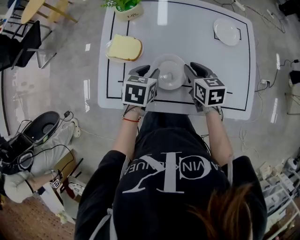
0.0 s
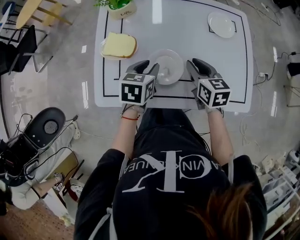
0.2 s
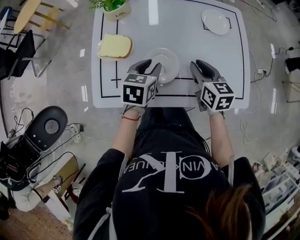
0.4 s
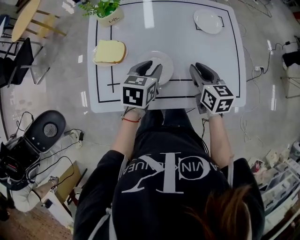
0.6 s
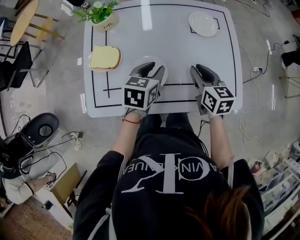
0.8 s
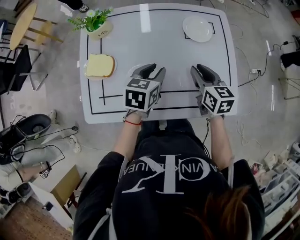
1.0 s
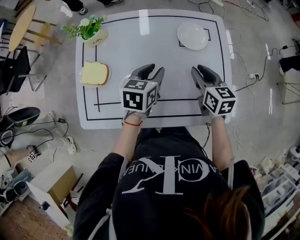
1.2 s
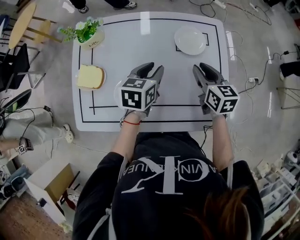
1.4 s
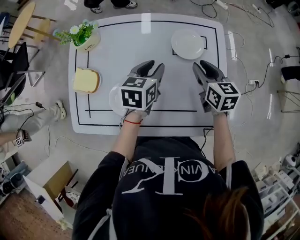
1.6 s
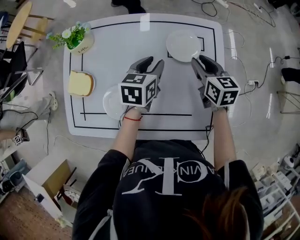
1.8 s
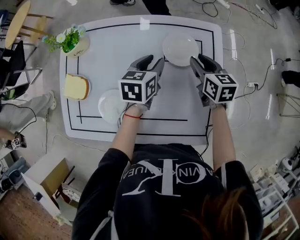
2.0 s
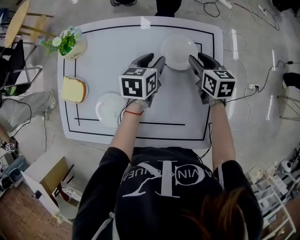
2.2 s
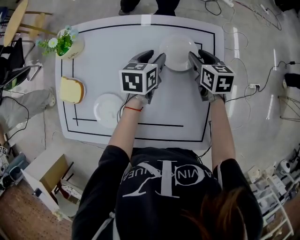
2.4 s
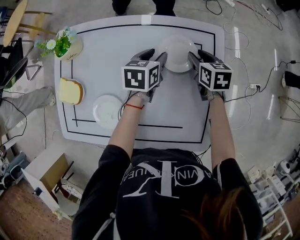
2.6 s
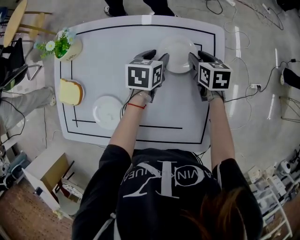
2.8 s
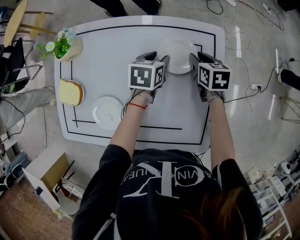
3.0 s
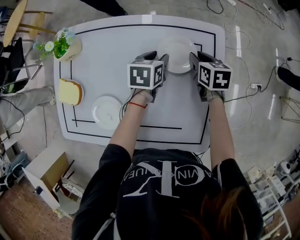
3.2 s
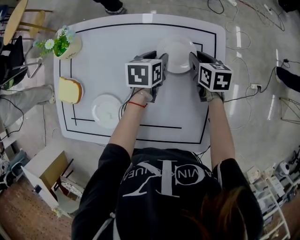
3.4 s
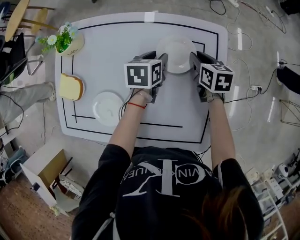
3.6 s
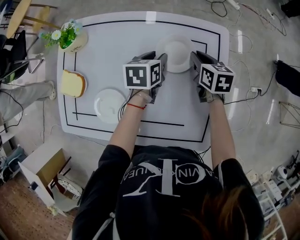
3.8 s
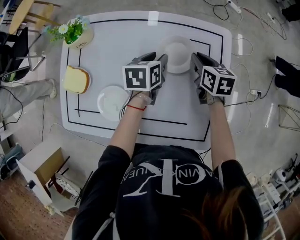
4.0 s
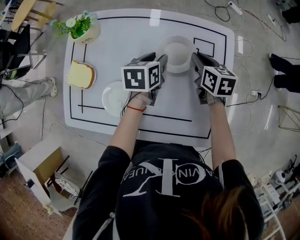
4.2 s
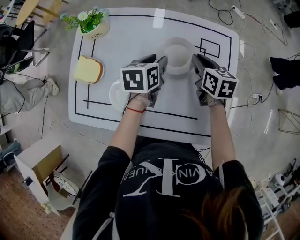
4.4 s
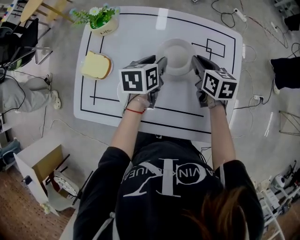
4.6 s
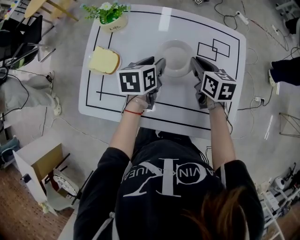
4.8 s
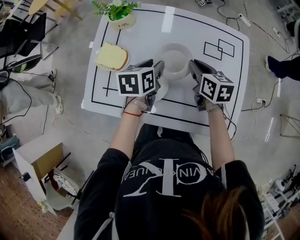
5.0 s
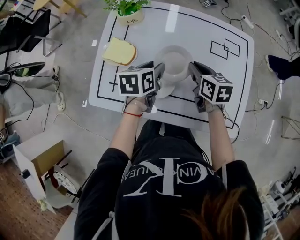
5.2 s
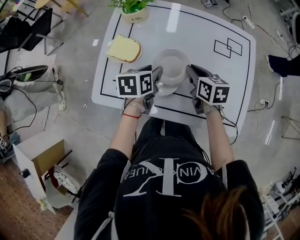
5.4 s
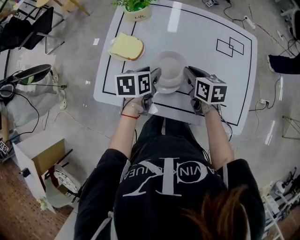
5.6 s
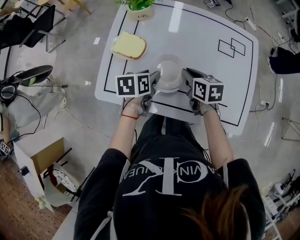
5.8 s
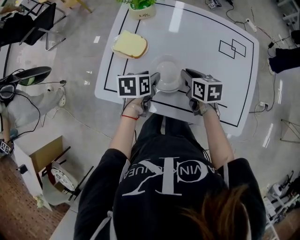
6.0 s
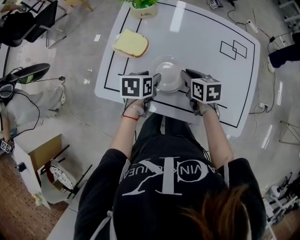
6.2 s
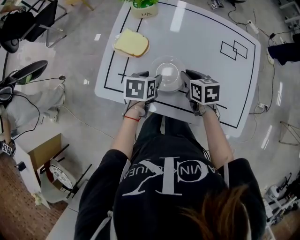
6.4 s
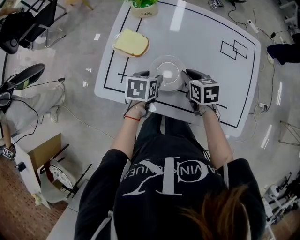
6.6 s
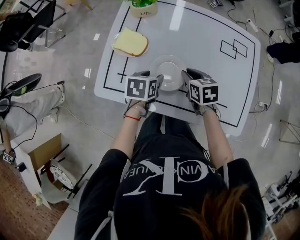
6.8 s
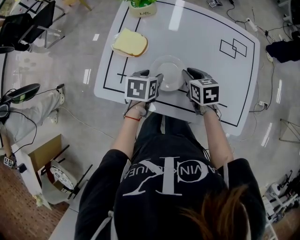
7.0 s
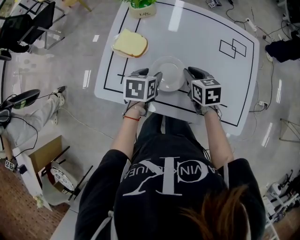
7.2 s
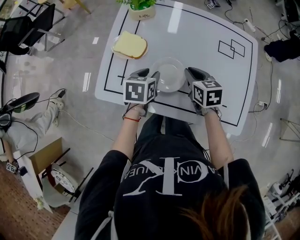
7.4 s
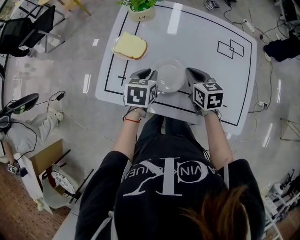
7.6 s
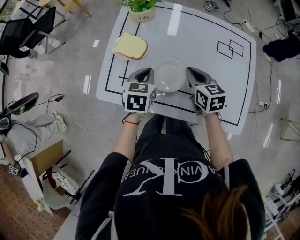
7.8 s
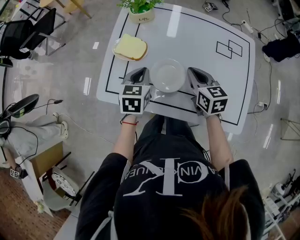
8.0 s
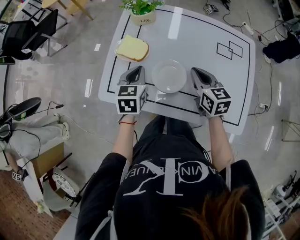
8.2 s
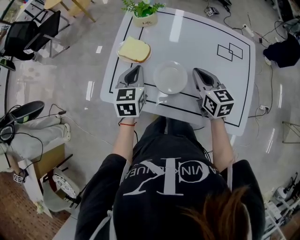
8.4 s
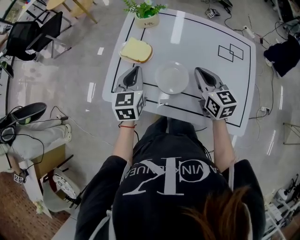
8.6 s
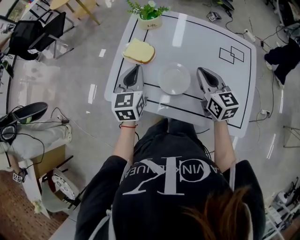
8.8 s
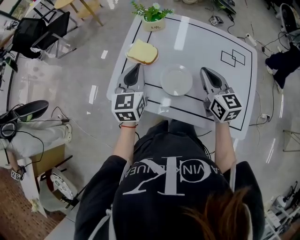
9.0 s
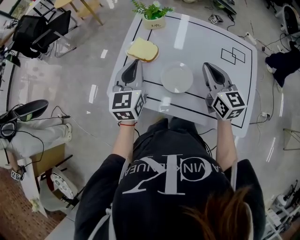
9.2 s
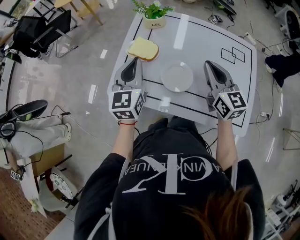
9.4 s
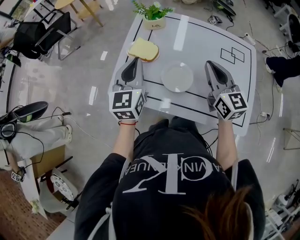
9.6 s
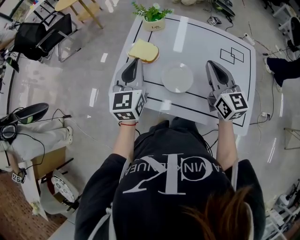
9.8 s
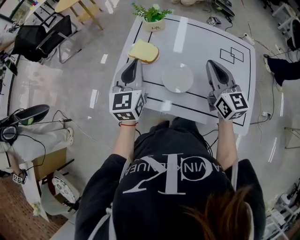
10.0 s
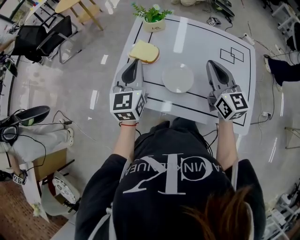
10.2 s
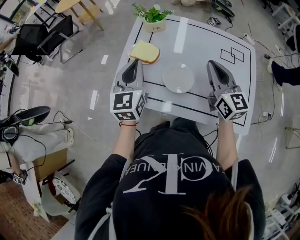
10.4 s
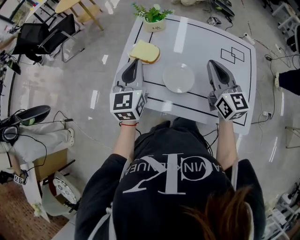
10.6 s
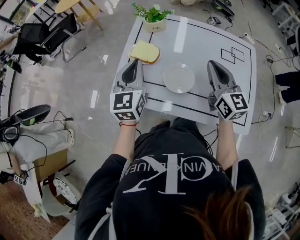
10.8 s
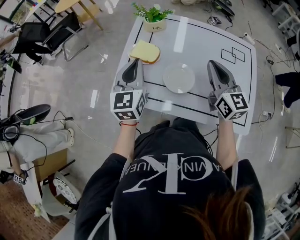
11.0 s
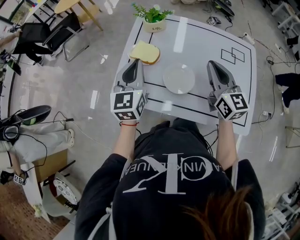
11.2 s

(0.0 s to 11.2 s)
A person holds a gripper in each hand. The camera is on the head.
0.0 s - 1.6 s: The grippers both shift to the right and forward by approximately 25 cm.
1.6 s - 3.2 s: Both grippers travel together forward, downward and to the right, some 15 cm.
3.2 s - 4.8 s: The right gripper goes approximately 25 cm to the left, backward and upward. The left gripper travels to the left and backward by approximately 20 cm.
4.8 s - 6.4 s: Both grippers move to the left, backward and downward, some 20 cm.
6.4 s - 8.0 s: The grippers both shift upward by some 5 cm. The left gripper swivels approximately 30 degrees, and closes.
8.0 s - 9.6 s: The left gripper goes roughly 15 cm upward and to the left, and tips its fingers upward by some 30 degrees, while the right gripper moves upward, some 15 cm, and rotates some 30 degrees.
9.6 s - 11.2 s: Neither gripper changes place.

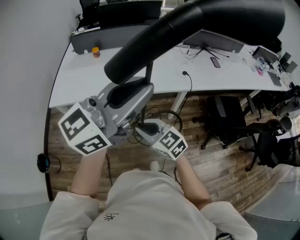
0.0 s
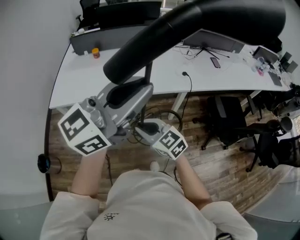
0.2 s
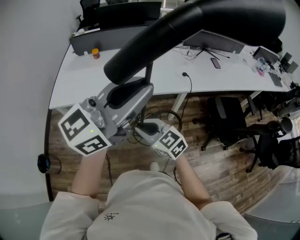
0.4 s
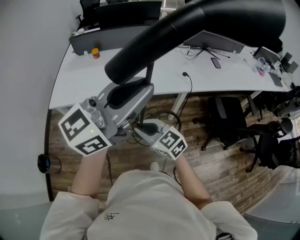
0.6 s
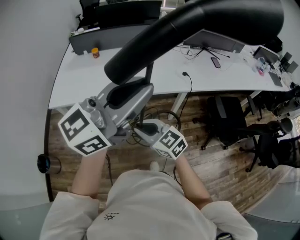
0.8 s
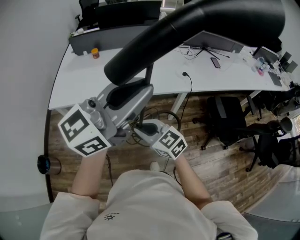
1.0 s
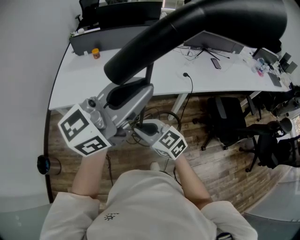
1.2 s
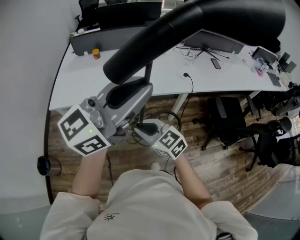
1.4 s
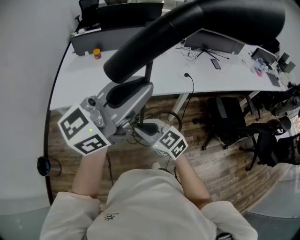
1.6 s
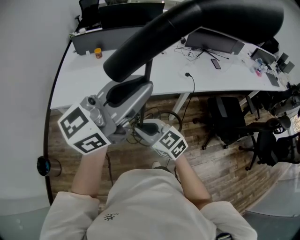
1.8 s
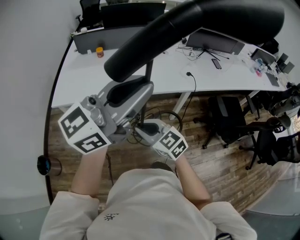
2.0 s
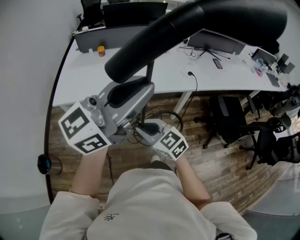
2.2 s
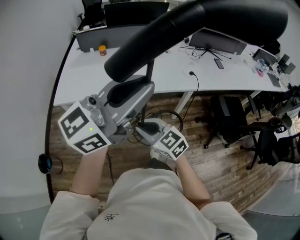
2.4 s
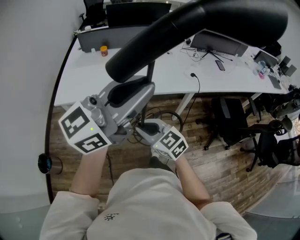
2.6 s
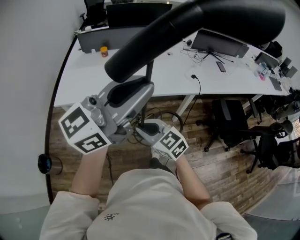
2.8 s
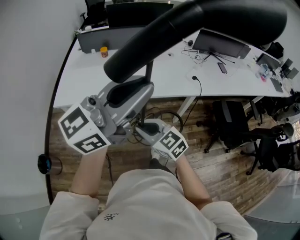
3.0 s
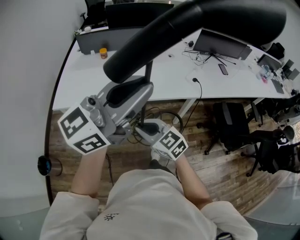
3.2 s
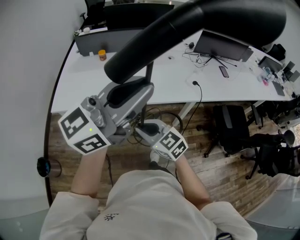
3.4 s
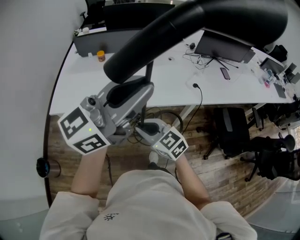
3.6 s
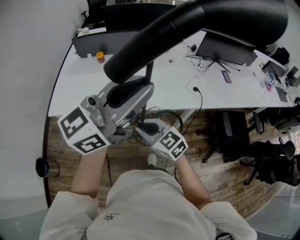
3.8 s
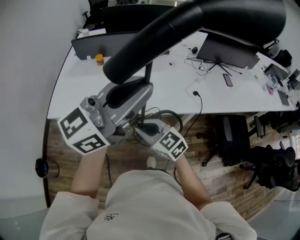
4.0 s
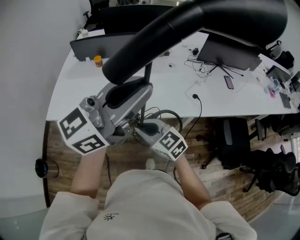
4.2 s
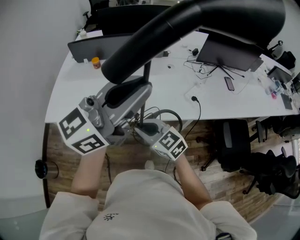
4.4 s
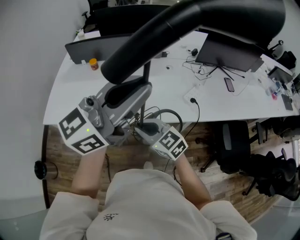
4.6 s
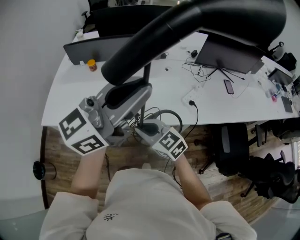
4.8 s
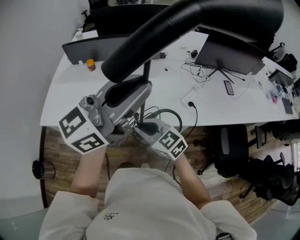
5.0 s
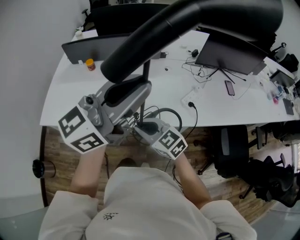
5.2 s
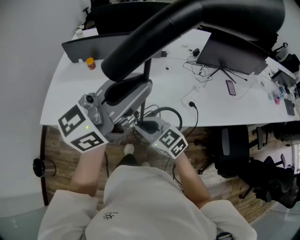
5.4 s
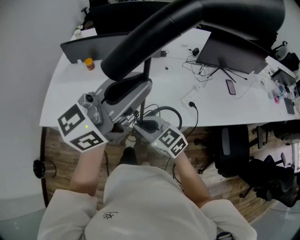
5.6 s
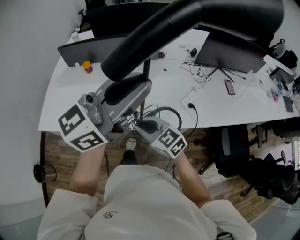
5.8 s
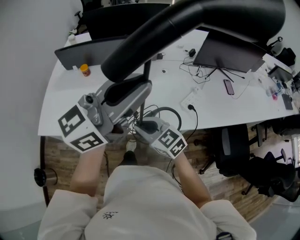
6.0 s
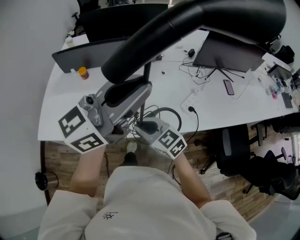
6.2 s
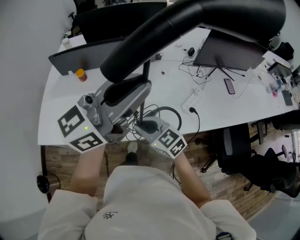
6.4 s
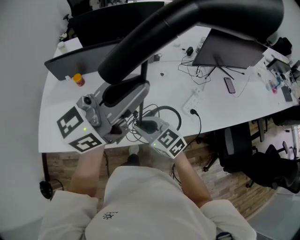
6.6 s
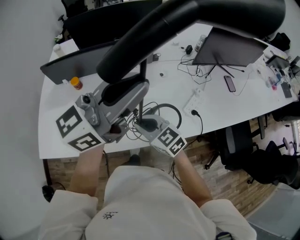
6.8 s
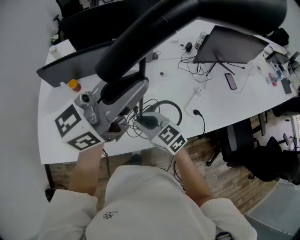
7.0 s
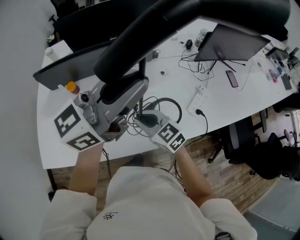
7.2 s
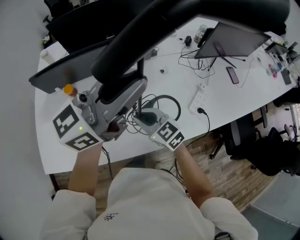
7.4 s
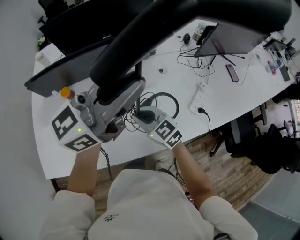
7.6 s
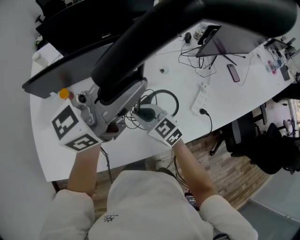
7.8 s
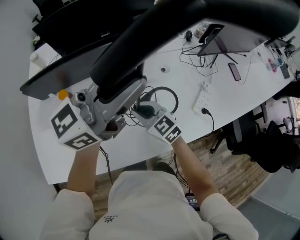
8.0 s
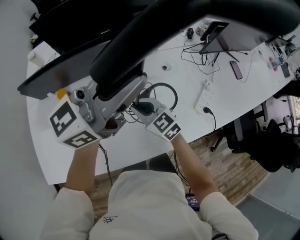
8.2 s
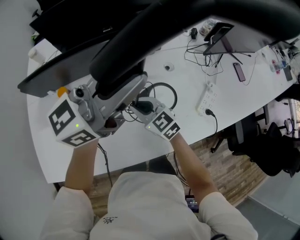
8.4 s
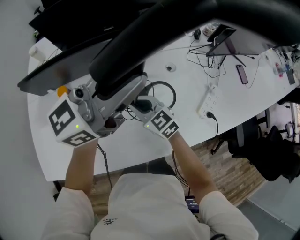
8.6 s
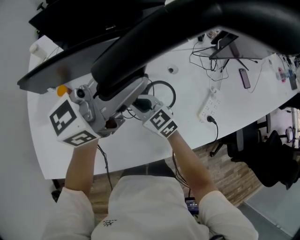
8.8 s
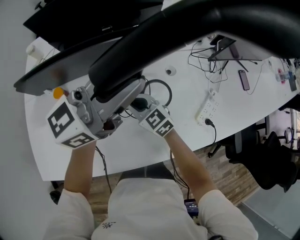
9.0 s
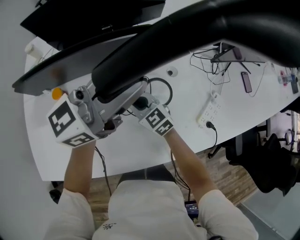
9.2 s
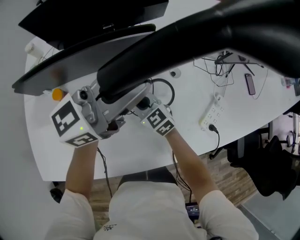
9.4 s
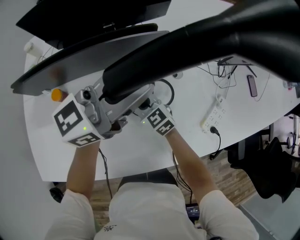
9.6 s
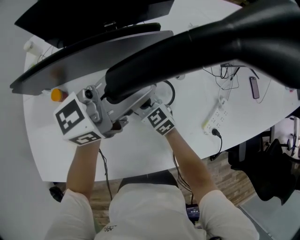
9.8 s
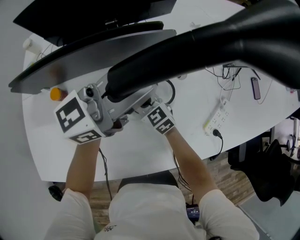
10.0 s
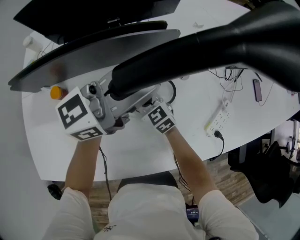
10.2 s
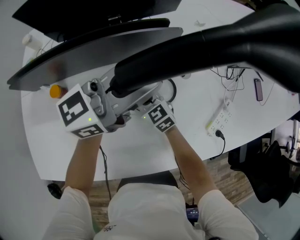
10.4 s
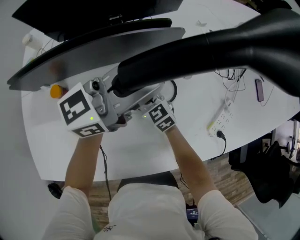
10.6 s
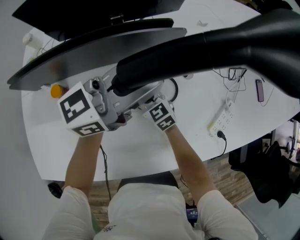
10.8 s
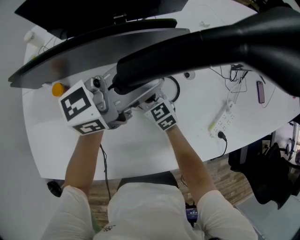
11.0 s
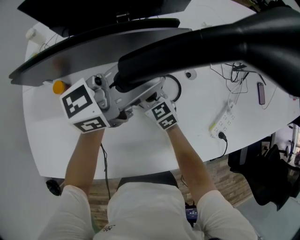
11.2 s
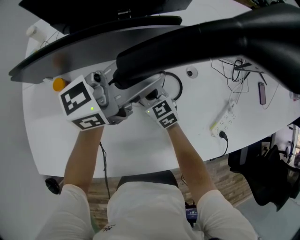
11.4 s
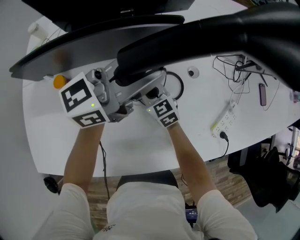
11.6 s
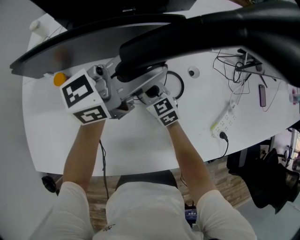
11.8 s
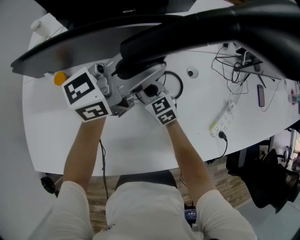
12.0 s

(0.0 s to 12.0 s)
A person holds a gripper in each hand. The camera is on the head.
0.0 s - 1.6 s: The grippers move only a little.
1.6 s - 3.0 s: The left gripper is displaced to the left by about 5 cm.
3.0 s - 4.4 s: Both grippers move forward and to the right, some 25 cm.
4.4 s - 6.0 s: The grippers both shift forward by roughly 10 cm.
6.0 s - 7.6 s: Both grippers travel together forward, about 25 cm.
7.6 s - 9.0 s: Both grippers travel together forward and downward, approximately 15 cm.
9.0 s - 10.4 s: The two grippers go about 10 cm downward and forward.
10.4 s - 12.0 s: The grippers make only small movements.

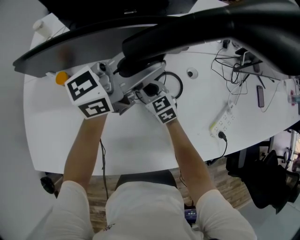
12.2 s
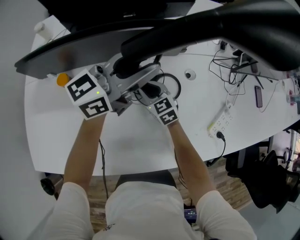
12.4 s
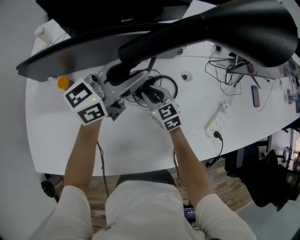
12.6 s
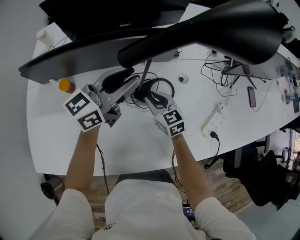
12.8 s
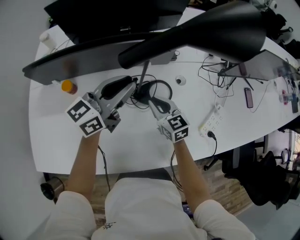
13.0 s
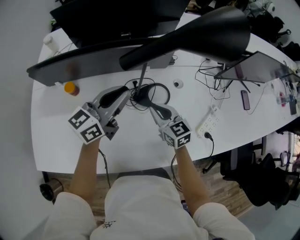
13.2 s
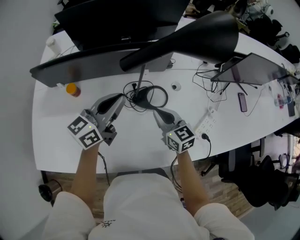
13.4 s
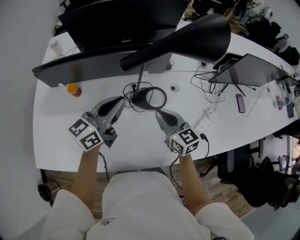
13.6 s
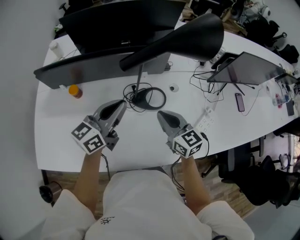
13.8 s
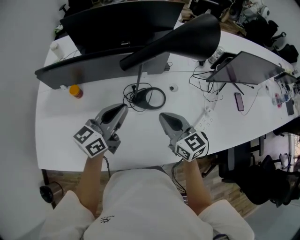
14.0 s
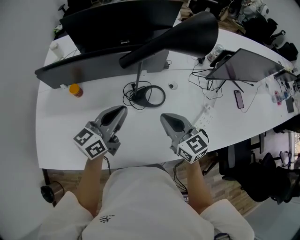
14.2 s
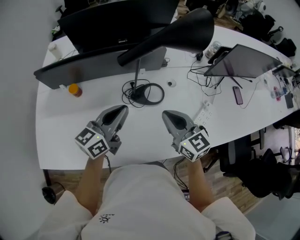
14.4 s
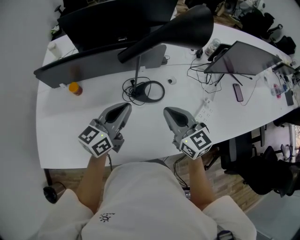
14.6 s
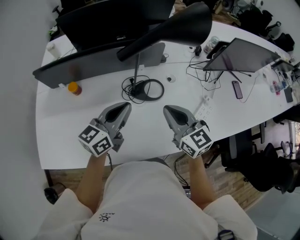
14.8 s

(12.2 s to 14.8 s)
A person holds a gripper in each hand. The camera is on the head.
12.2 s - 13.4 s: The right gripper moves upward, to the right and backward, some 20 cm. Meanwhile the left gripper is displaced backward and to the left by roughly 10 cm, rotates some 20 degrees, and opens, then closes again.
13.4 s - 14.8 s: The right gripper heads upward and backward, covering roughly 15 cm. The left gripper goes roughly 10 cm backward.
